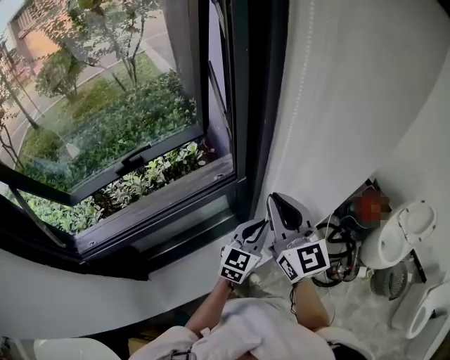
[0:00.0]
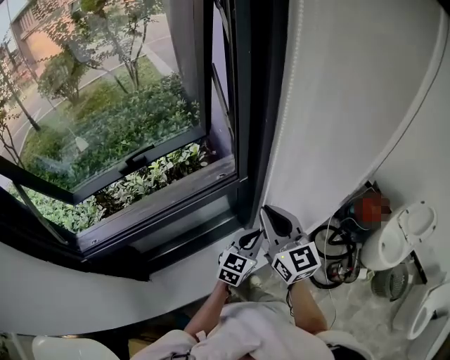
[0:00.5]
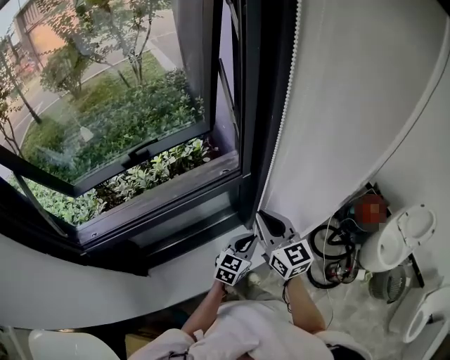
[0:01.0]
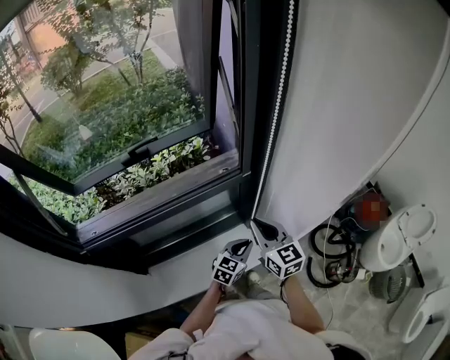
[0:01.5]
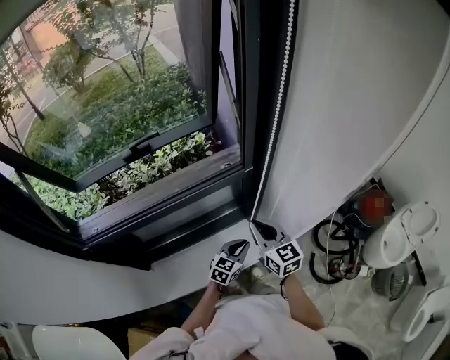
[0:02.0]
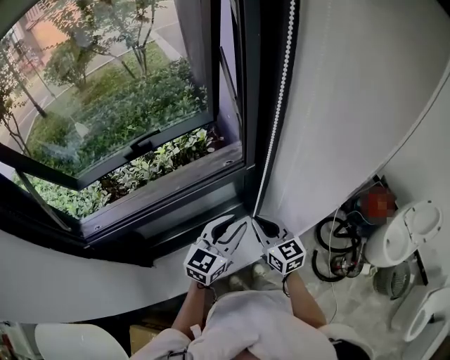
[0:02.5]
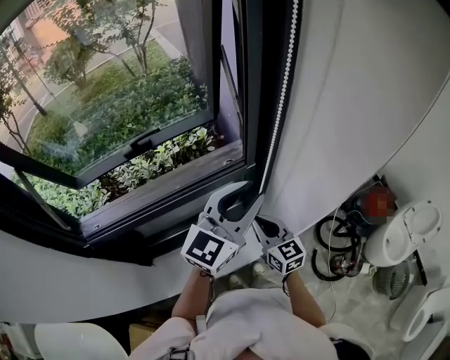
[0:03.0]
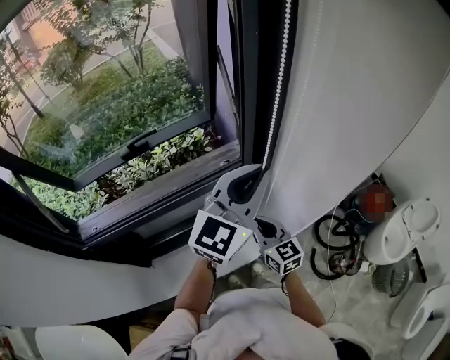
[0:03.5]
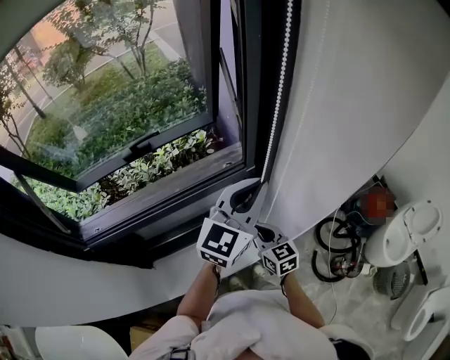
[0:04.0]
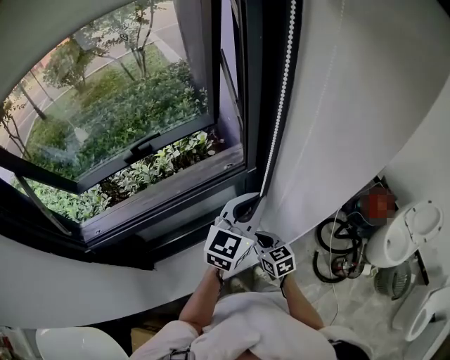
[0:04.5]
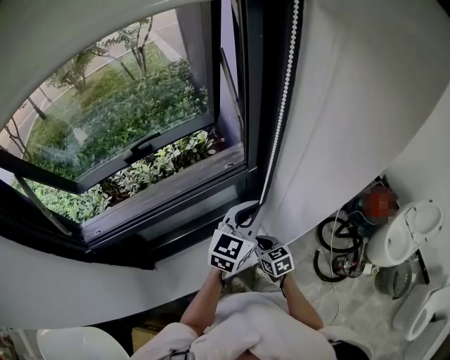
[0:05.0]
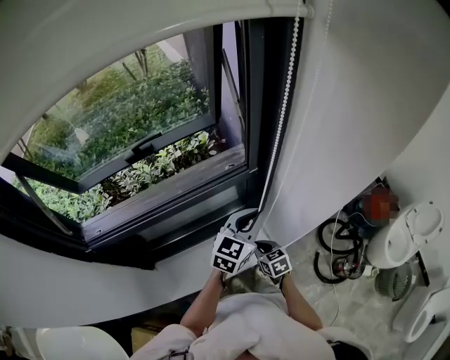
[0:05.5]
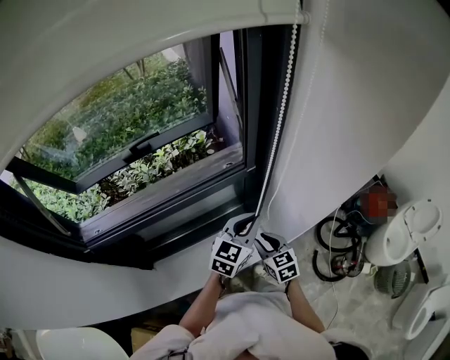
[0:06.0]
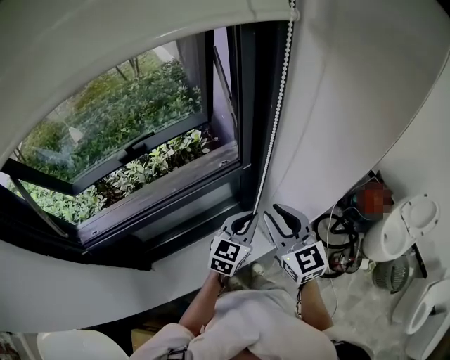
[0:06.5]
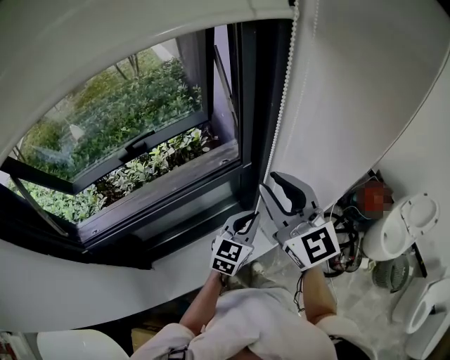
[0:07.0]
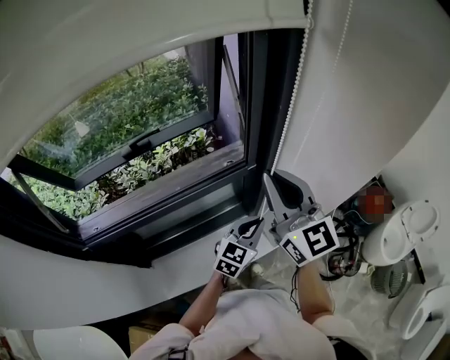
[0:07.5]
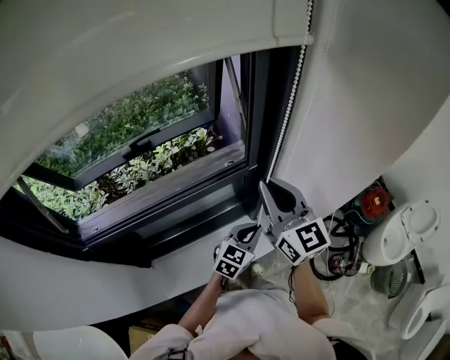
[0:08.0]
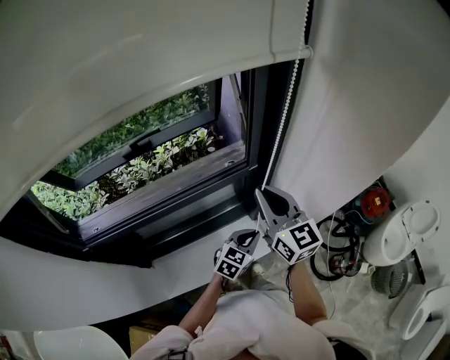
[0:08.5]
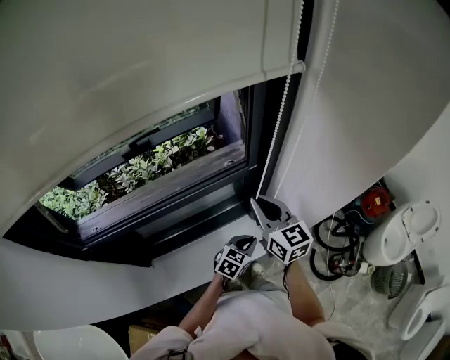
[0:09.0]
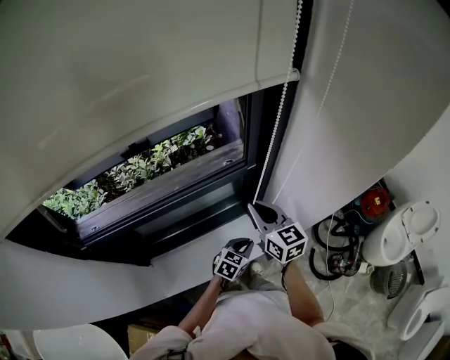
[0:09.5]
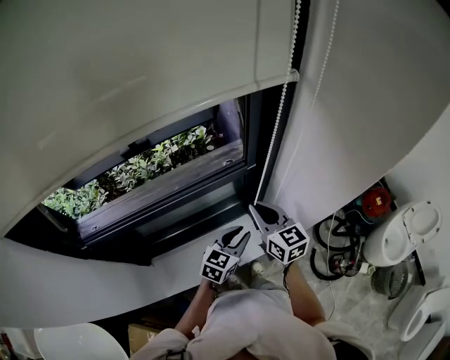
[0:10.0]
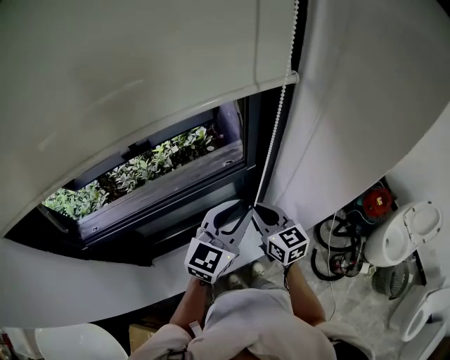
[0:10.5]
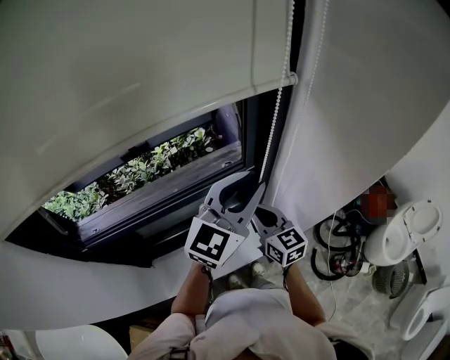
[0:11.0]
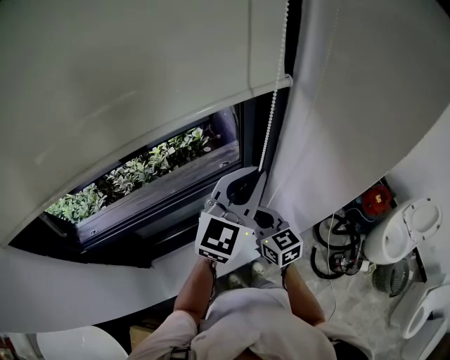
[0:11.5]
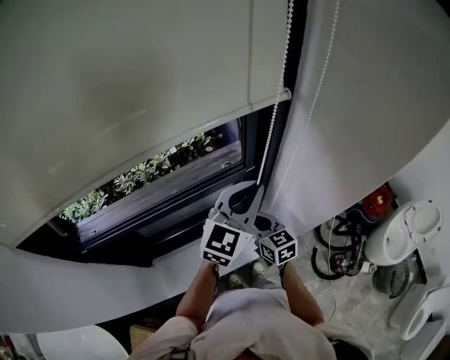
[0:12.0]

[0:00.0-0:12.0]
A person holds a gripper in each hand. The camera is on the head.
0:00.0 to 0:02.0: The two grippers go about 20 cm downward. The right gripper changes its angle by some 30 degrees.
0:02.0 to 0:04.0: The left gripper moves upward, some 35 cm, rotates some 30 degrees, and opens, then closes once more.
0:04.0 to 0:06.0: The right gripper heads downward, covering about 5 cm, and opens up, while the left gripper travels downward by some 15 cm.
0:06.0 to 0:08.0: The left gripper is displaced downward by approximately 5 cm. Meanwhile the right gripper goes some 30 cm upward, tips its fingers upward by about 40 degrees, and closes up.
0:08.0 to 0:10.0: The left gripper moves roughly 15 cm downward and comes back, and opens up, while the right gripper moves downward, roughly 15 cm, and rotates approximately 20 degrees.
0:10.0 to 0:12.0: The right gripper heads downward, covering roughly 5 cm. The left gripper is displaced upward by approximately 20 cm, swivels about 30 degrees, and closes.

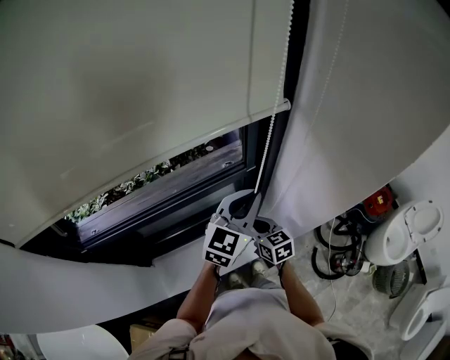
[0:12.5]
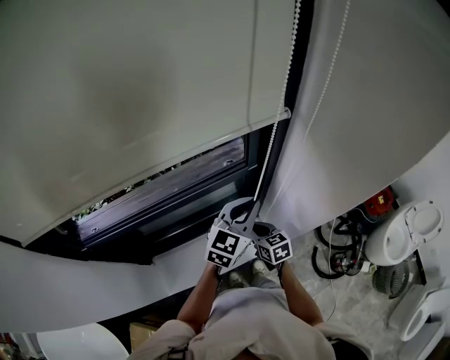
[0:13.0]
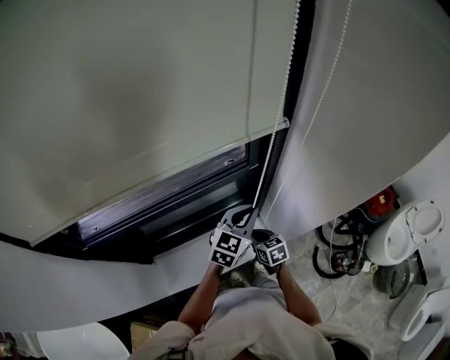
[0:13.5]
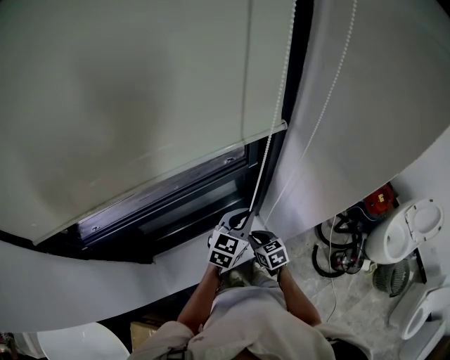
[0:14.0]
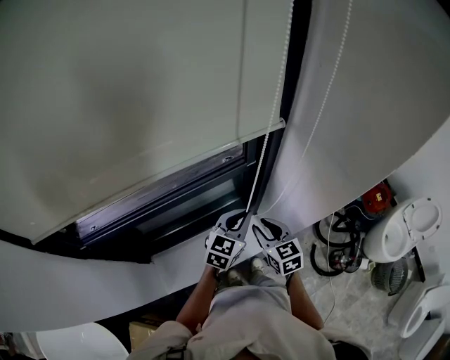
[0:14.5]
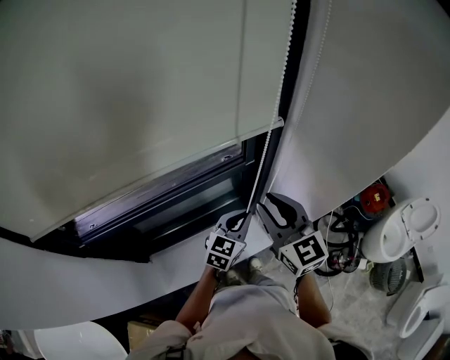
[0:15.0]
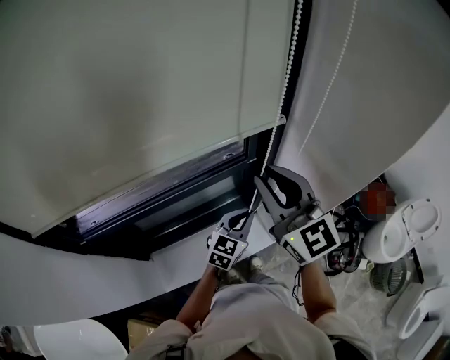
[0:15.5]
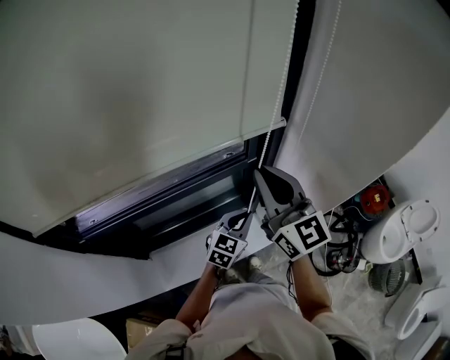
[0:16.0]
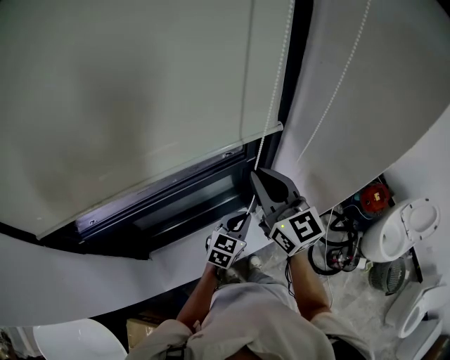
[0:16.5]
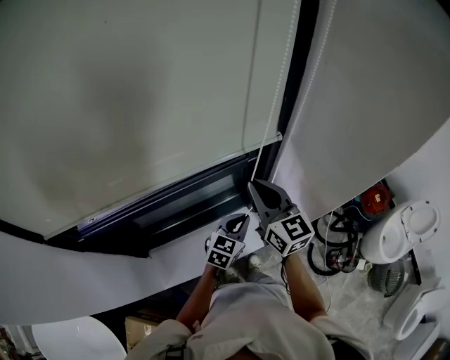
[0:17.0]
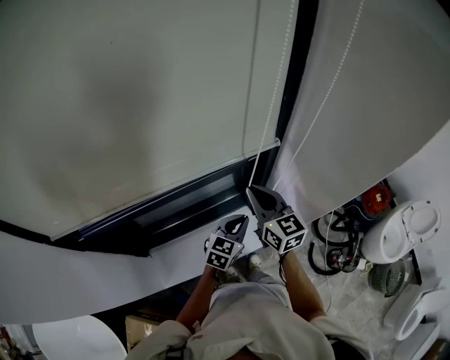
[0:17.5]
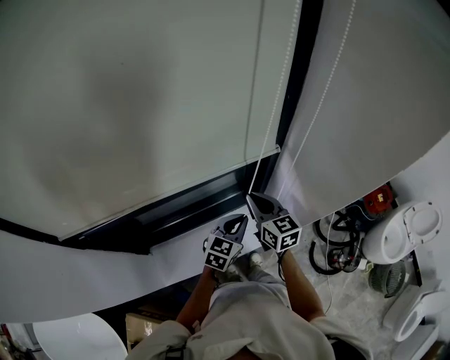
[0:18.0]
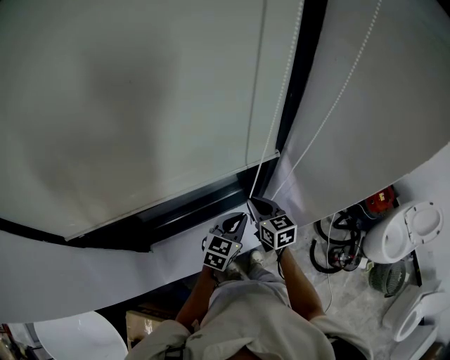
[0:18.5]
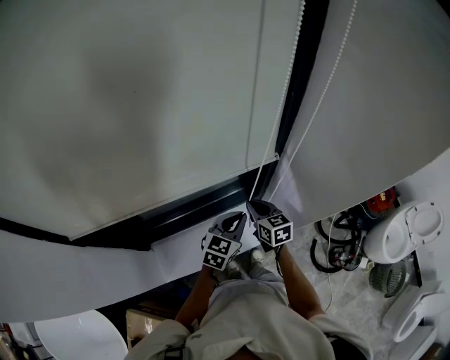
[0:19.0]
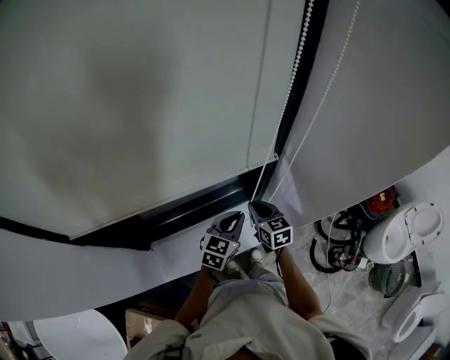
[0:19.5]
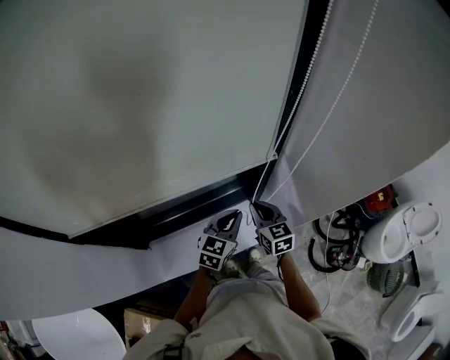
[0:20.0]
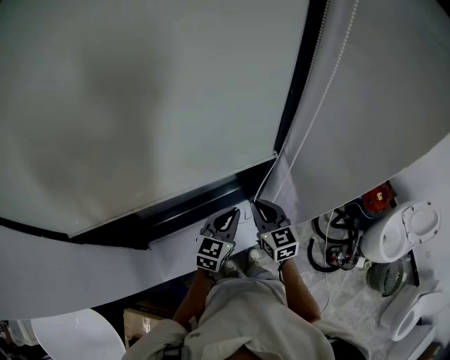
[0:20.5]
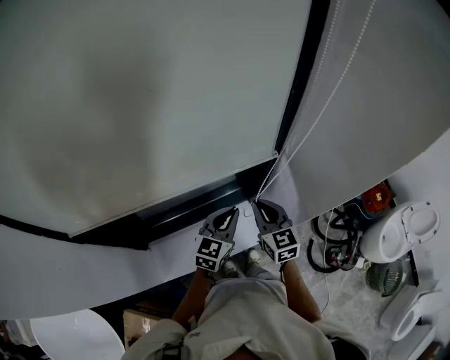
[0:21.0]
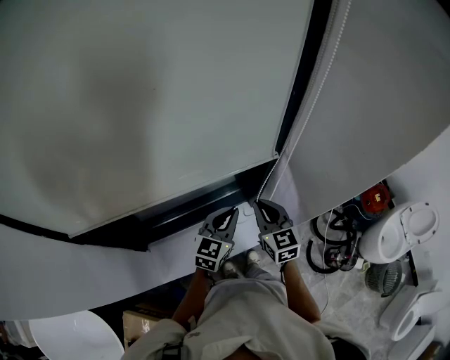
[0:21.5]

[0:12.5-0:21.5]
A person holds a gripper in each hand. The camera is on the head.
0:12.5 to 0:14.5: The left gripper is displaced downward by some 15 cm. The right gripper moves some 10 cm downward and comes back, and opens.
0:14.5 to 0:17.0: The right gripper shifts roughly 15 cm upward, changes its angle by roughly 30 degrees, and closes up.
0:17.0 to 0:19.5: The right gripper moves downward, approximately 20 cm, and turns by roughly 30 degrees.
0:19.5 to 0:21.5: The right gripper shifts approximately 10 cm upward.

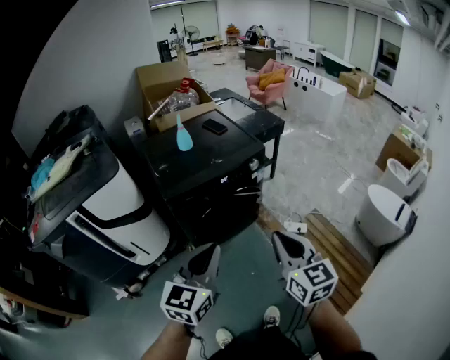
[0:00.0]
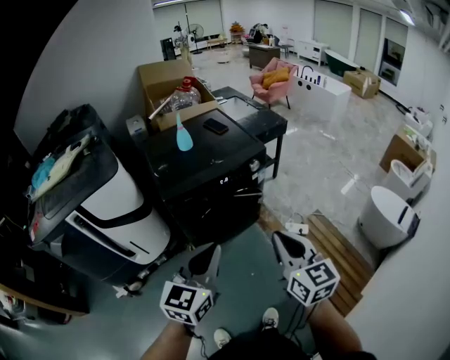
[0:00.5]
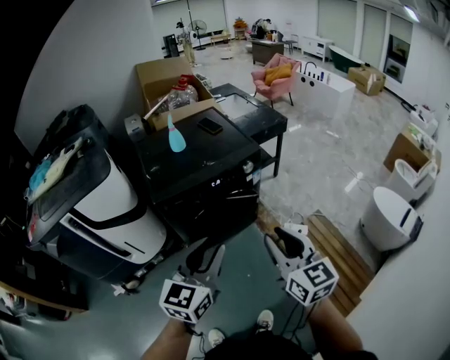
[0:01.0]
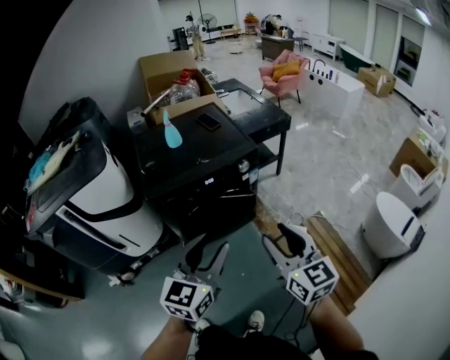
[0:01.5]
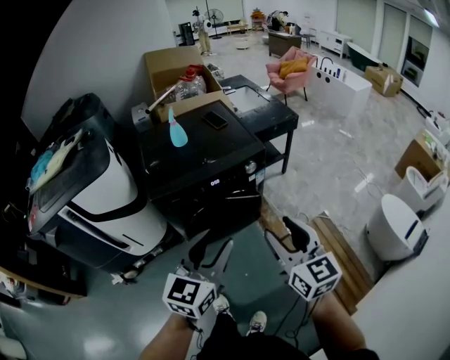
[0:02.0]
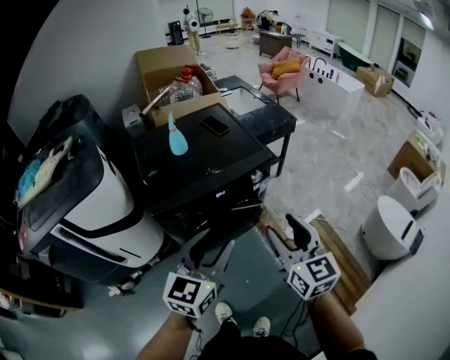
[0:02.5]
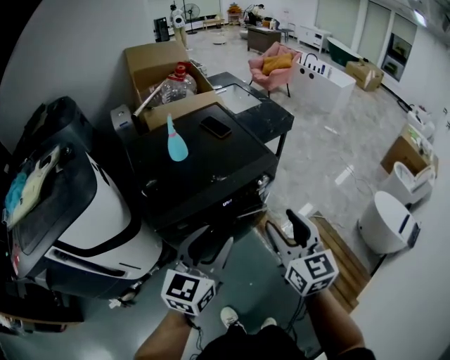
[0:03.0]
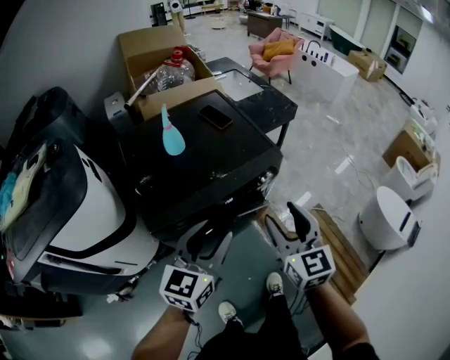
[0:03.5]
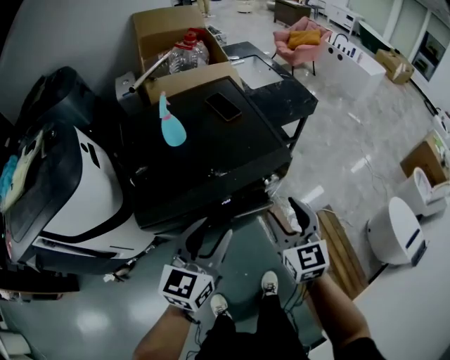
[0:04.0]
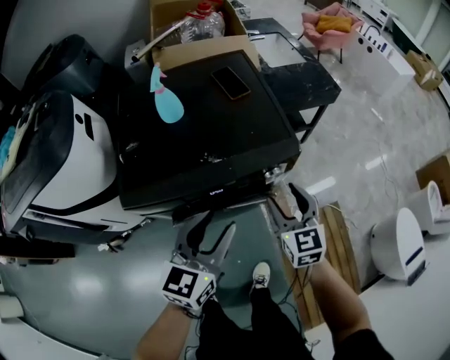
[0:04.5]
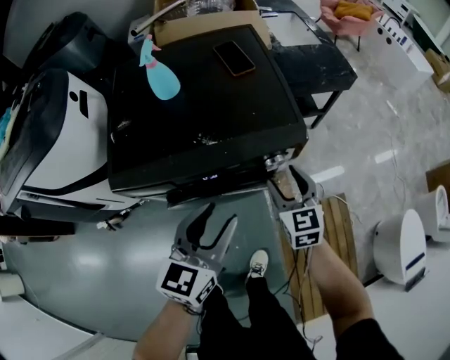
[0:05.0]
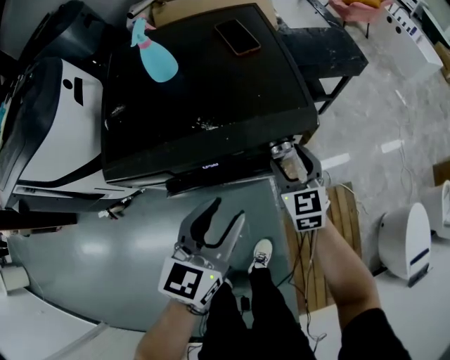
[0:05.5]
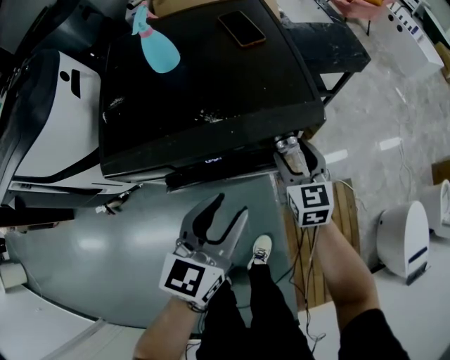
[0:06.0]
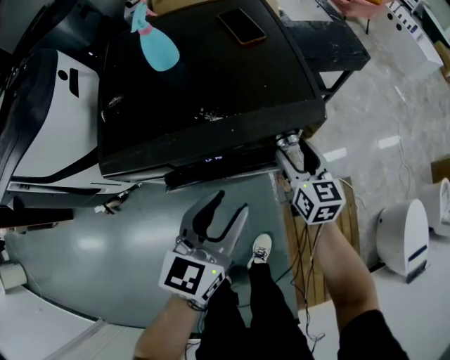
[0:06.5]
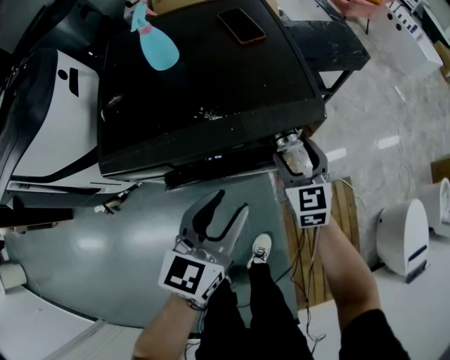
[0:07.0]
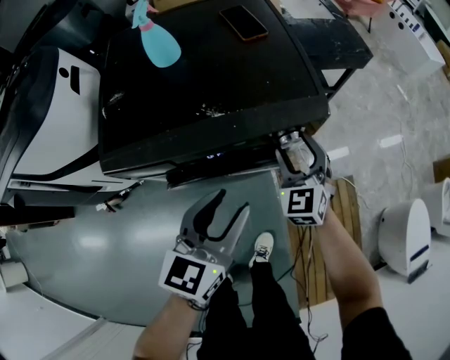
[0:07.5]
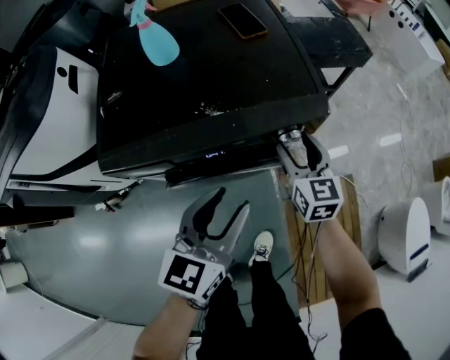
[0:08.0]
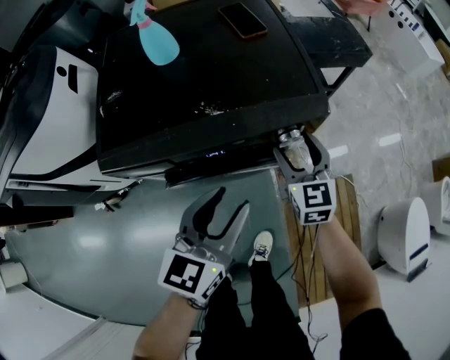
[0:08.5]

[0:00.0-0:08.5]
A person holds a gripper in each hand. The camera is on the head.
0:00.0 to 0:02.0: The right gripper goes roughly 15 cm forward and to the right, and opens up. The left gripper shifts about 15 cm to the right and forward, and opens up.
0:02.0 to 0:04.0: The right gripper is displaced forward and downward by about 30 cm. Meanwhile the left gripper travels forward by approximately 25 cm.
0:04.0 to 0:06.5: The left gripper travels downward and to the right by some 15 cm; the right gripper moves downward and forward, some 25 cm, and turns by about 20 degrees.
